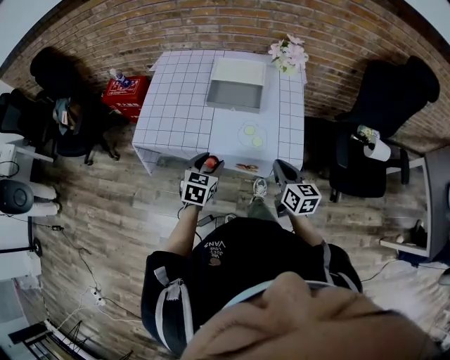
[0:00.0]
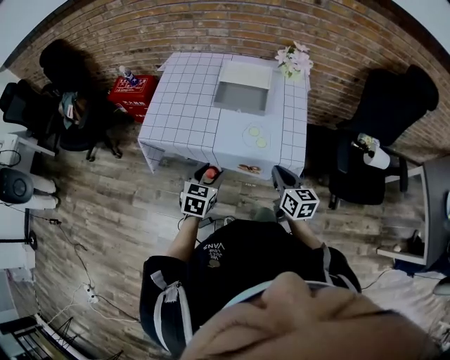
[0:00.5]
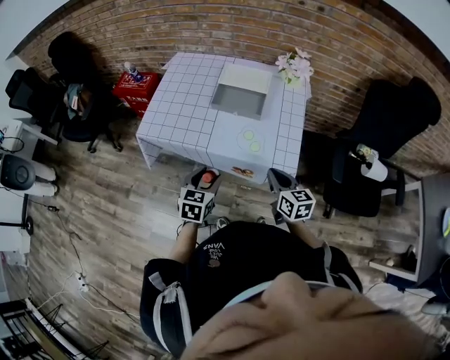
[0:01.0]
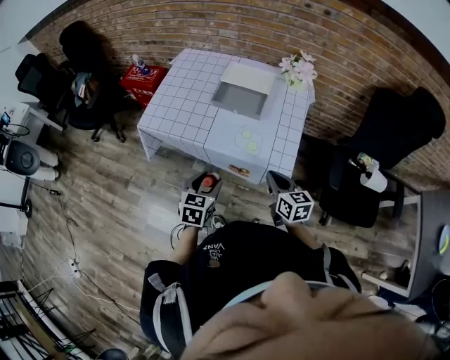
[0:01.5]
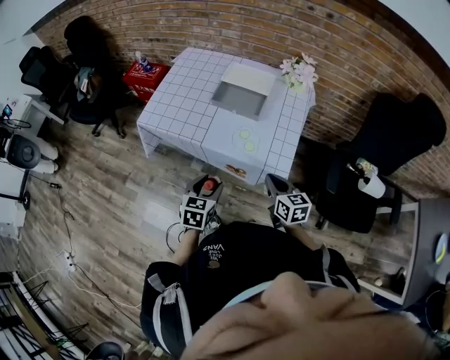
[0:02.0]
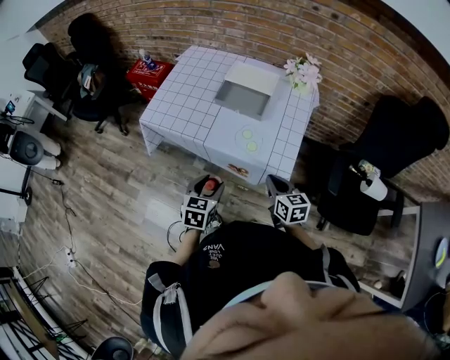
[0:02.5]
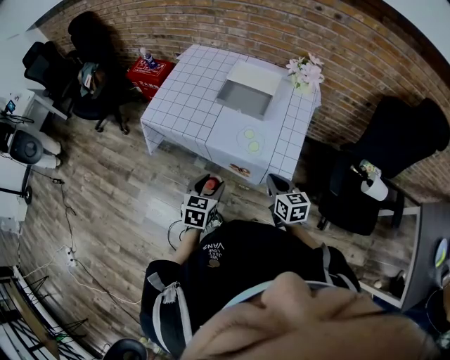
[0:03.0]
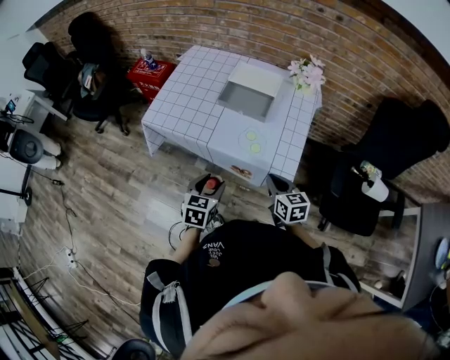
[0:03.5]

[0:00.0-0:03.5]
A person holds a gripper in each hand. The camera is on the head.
0:00.0 to 0:02.0: The left gripper travels backward and to the right by approximately 10 cm.
0:02.0 to 0:03.5: The grippers move only a little.

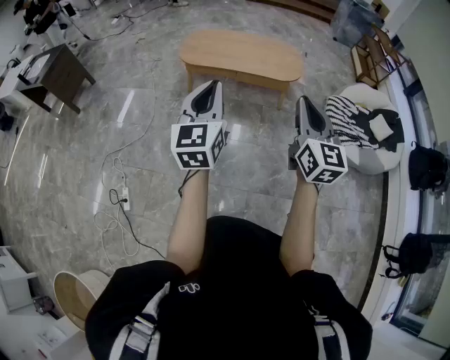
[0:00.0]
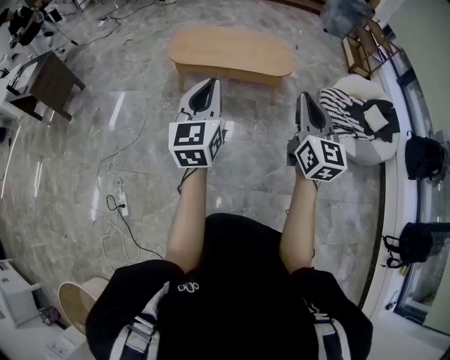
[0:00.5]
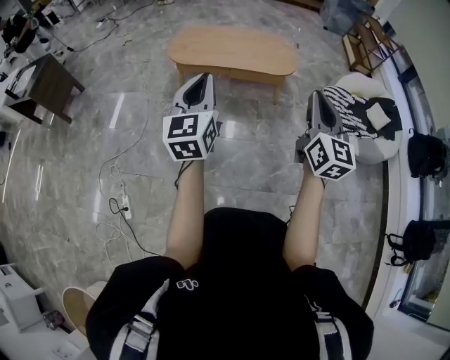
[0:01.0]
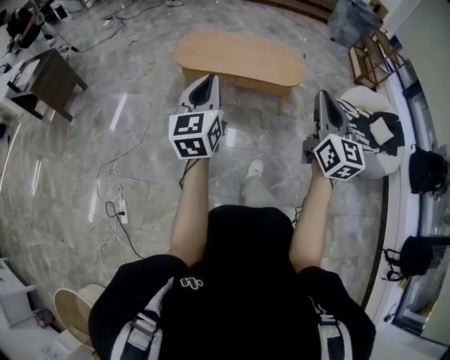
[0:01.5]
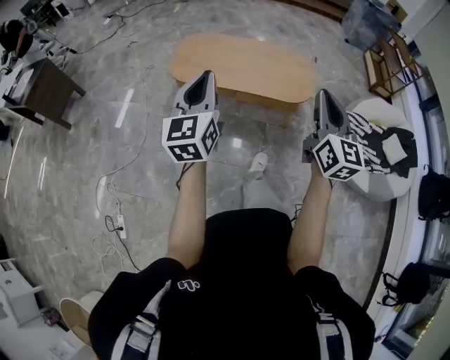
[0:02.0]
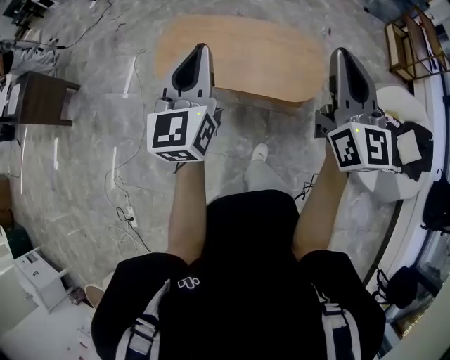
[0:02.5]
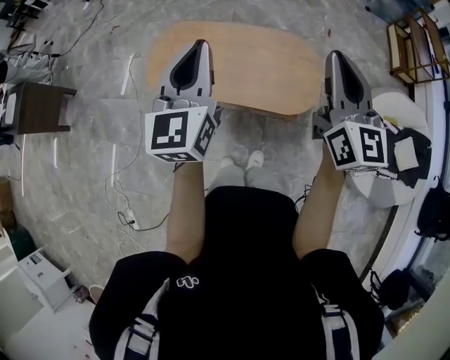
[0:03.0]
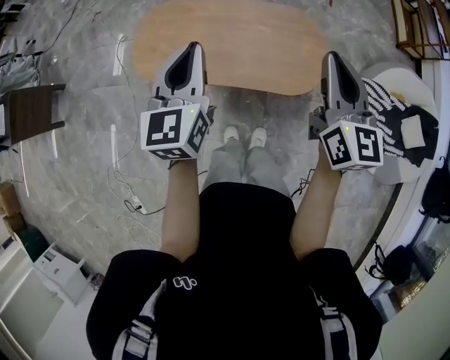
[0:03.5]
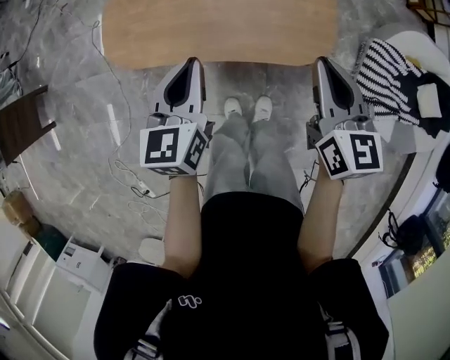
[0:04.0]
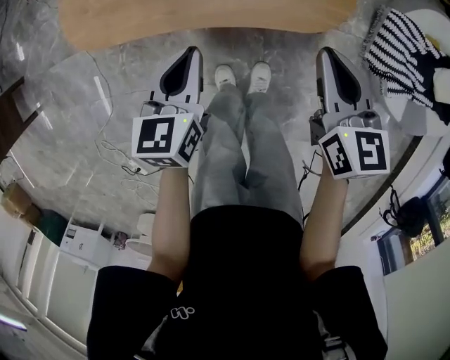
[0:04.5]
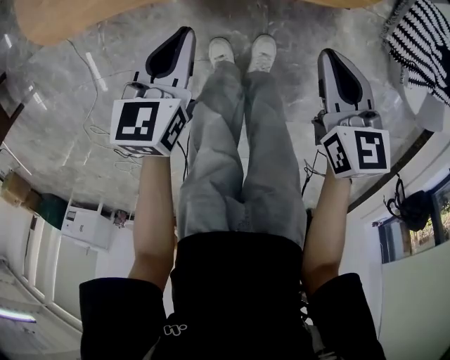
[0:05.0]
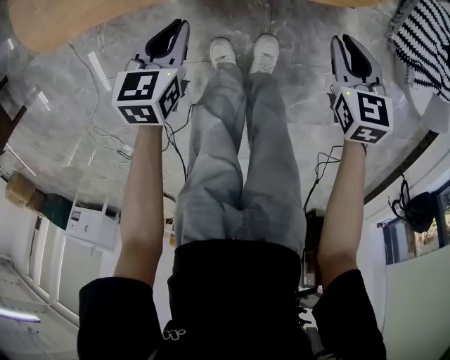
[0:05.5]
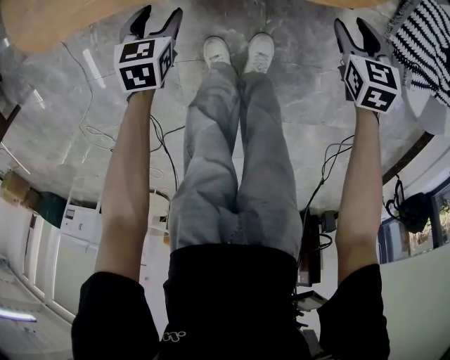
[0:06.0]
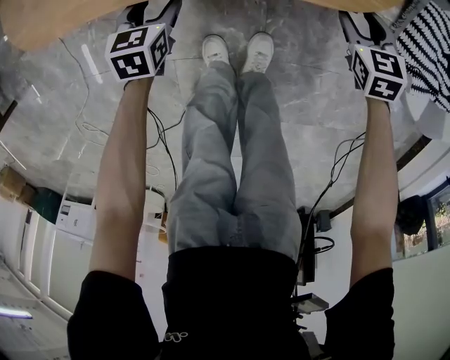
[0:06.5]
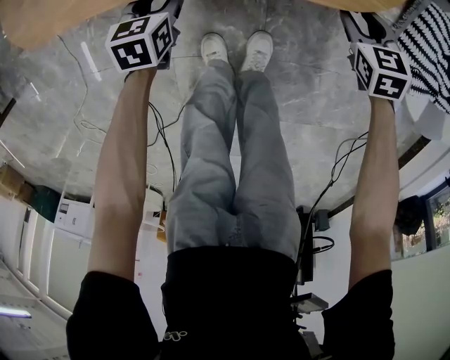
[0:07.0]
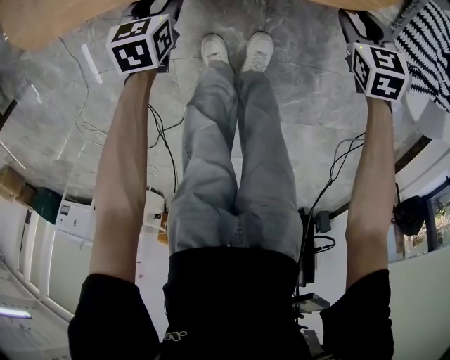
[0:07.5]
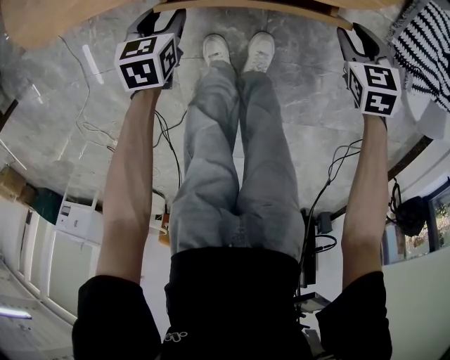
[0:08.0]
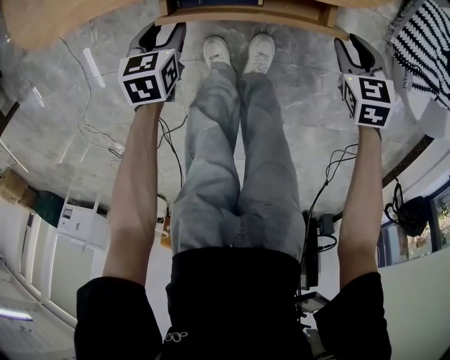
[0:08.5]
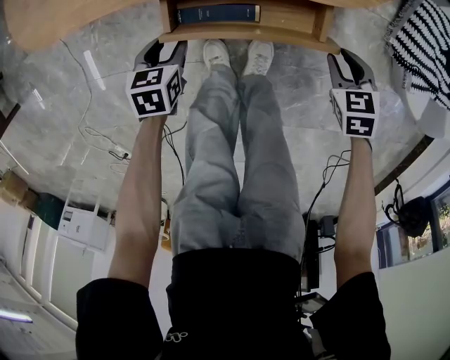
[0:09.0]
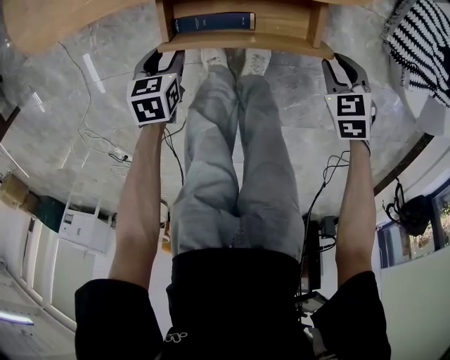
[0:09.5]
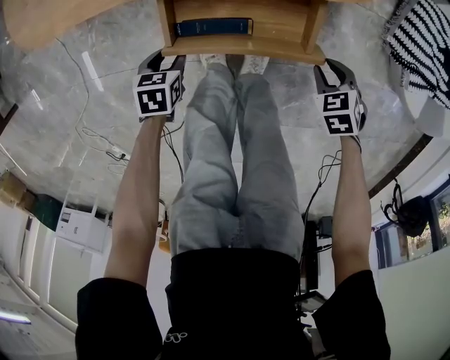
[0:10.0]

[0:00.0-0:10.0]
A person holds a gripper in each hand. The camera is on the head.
0:00.0 to 0:02.0: The grippers both shift forward by some 35 cm.
0:02.0 to 0:04.0: Both grippers are carried forward, some 40 cm. Both grippers move downward, approximately 25 cm. The right gripper changes its angle by roughly 30 degrees; the left gripper swivels about 30 degrees.
0:04.0 to 0:06.0: The two grippers go about 50 cm downward. The left gripper tilts its fingers about 30 degrees downward, and opens, while the right gripper tips its fingers downward by approximately 40 degrees, and opens its fingers.
0:06.0 to 0:08.0: The grippers move only a little.
0:08.0 to 0:10.0: The left gripper changes place by roughly 15 cm. Meanwhile the right gripper moves approximately 15 cm.

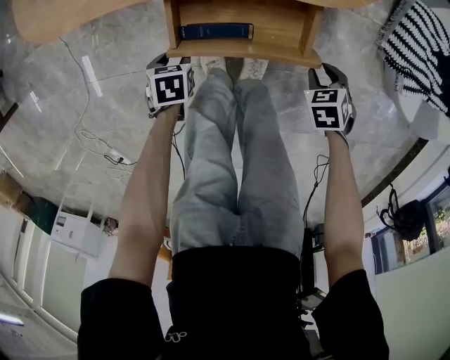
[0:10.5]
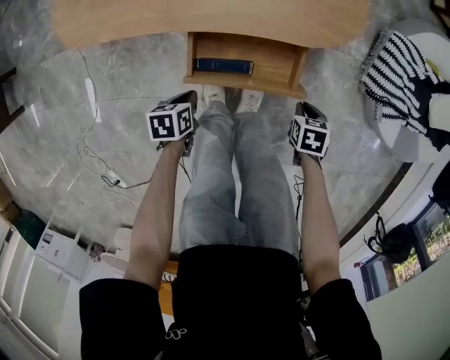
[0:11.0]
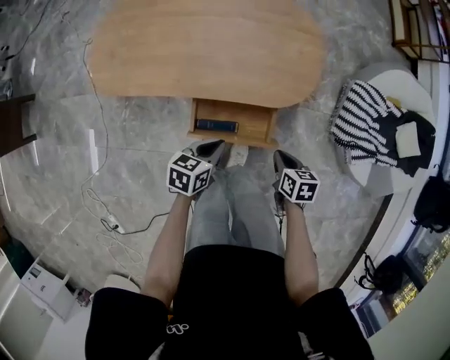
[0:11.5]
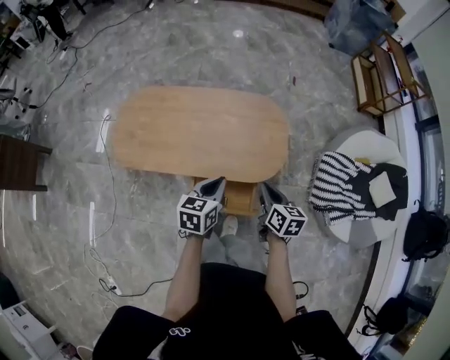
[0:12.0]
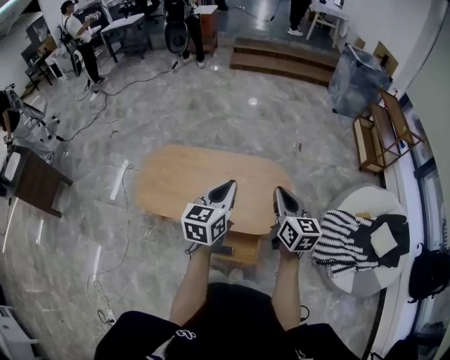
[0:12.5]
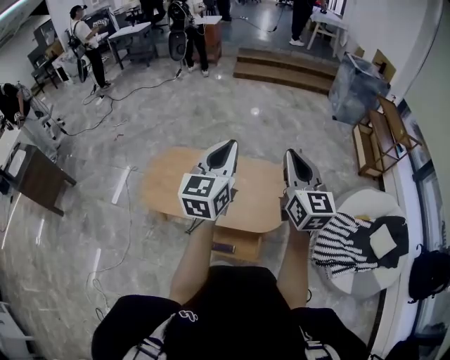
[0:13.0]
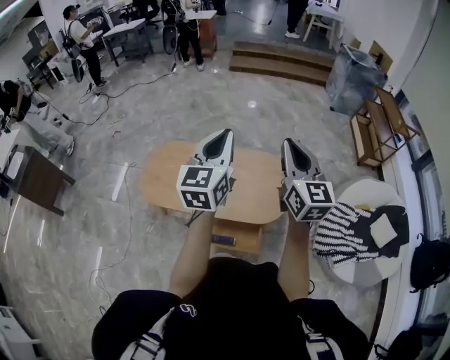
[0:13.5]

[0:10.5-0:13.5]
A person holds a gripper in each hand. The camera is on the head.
0:10.5 to 0:12.0: The grippers both shift upward by roughly 50 cm. The right gripper points its fingers approximately 50 degrees further upward, and closes its fingers. The left gripper tips its fingers upward by some 50 degrees, and closes up.
0:12.0 to 0:13.5: The two grippers go some 40 cm upward. The left gripper tilts its fingers approximately 40 degrees upward, while the right gripper points its fingers roughly 40 degrees further upward.

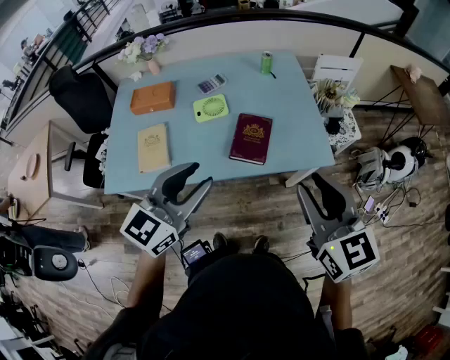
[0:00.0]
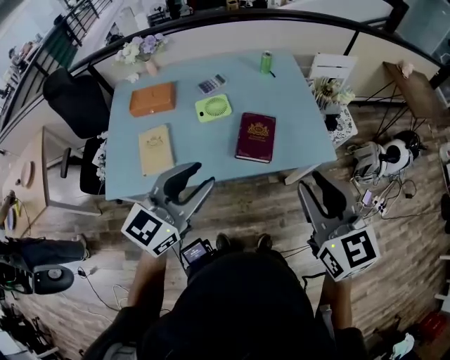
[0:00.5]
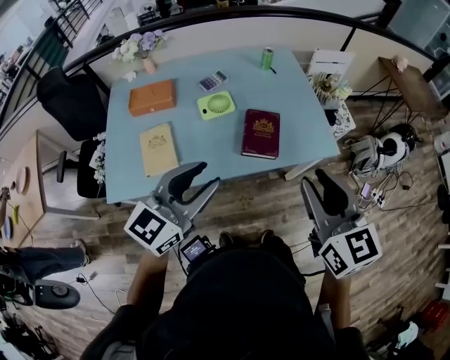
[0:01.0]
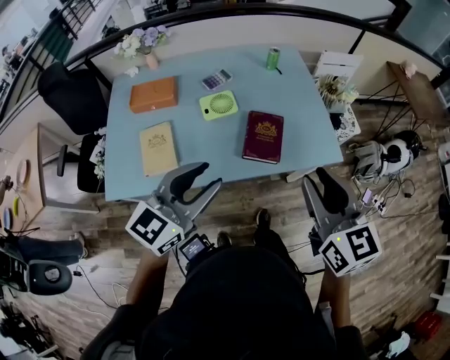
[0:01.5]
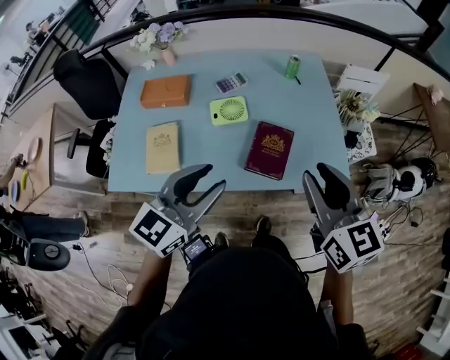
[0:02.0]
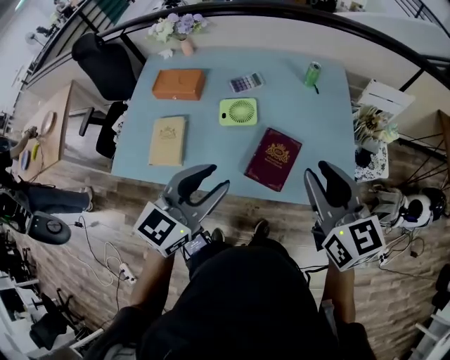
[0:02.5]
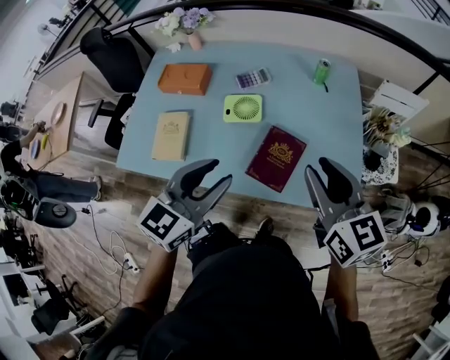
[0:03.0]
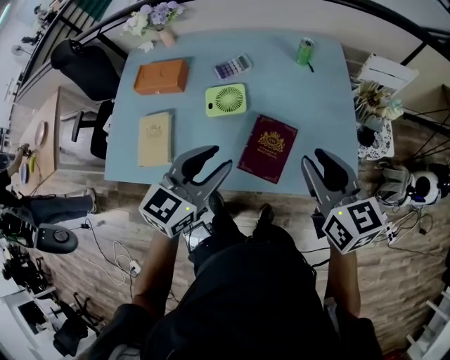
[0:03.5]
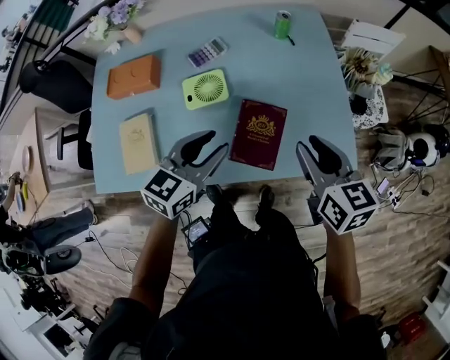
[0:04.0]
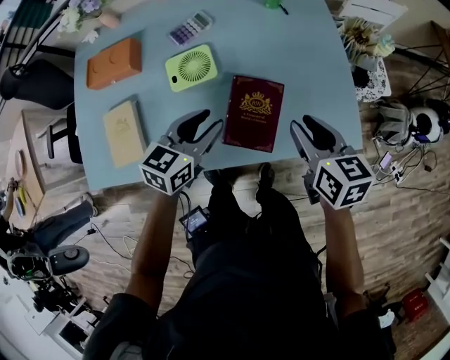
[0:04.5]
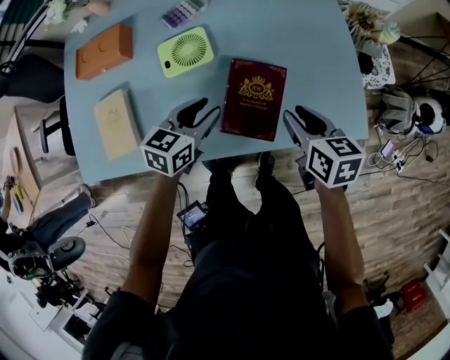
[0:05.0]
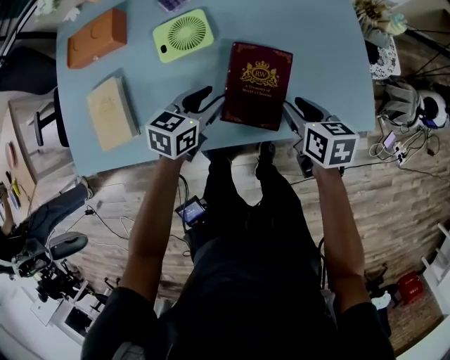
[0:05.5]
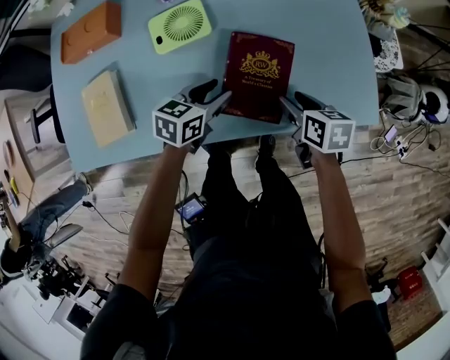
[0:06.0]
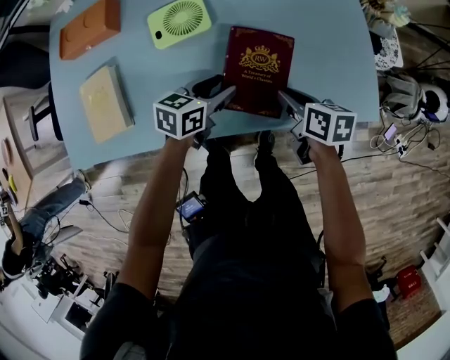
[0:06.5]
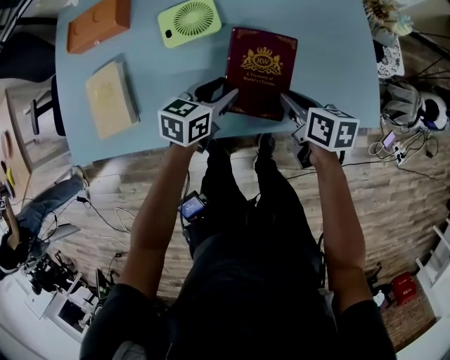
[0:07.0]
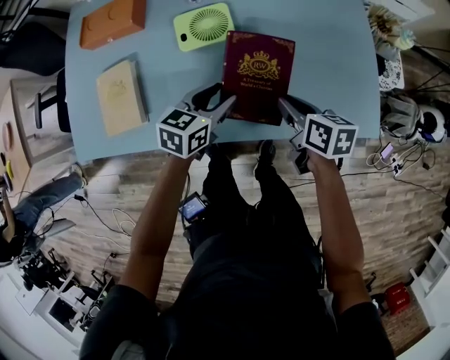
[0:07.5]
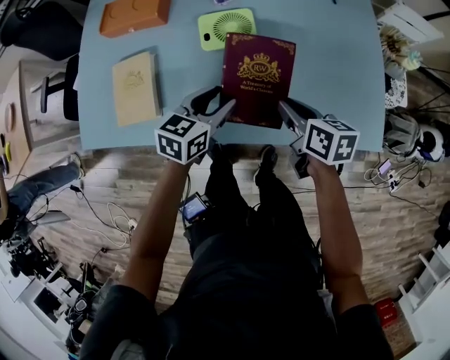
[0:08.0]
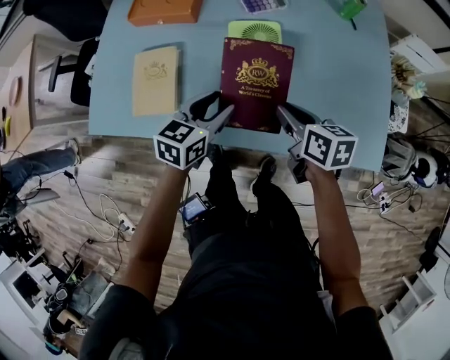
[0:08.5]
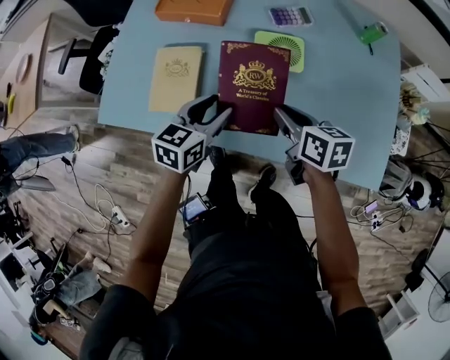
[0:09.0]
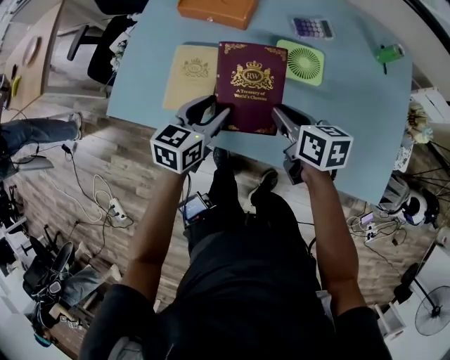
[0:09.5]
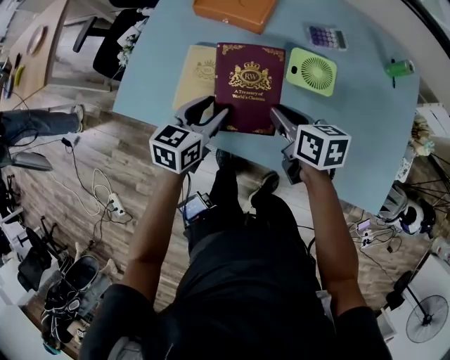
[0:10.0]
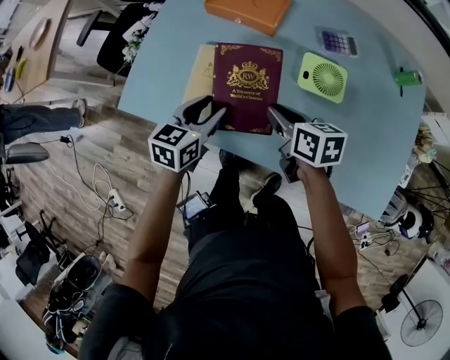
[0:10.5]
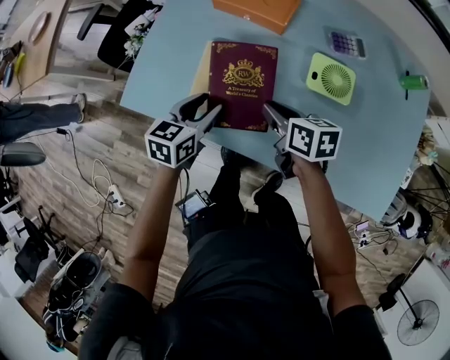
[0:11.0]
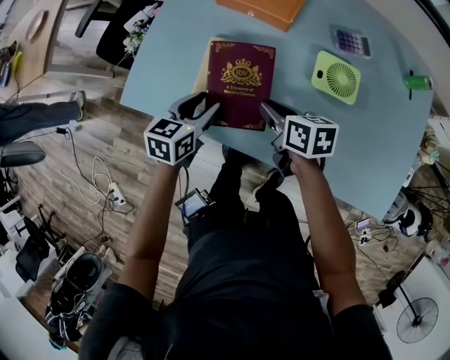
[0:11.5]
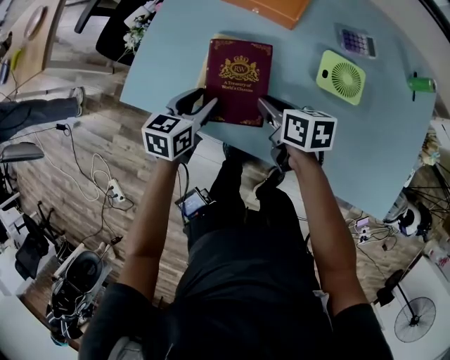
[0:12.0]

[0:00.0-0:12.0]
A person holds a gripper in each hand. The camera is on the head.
0:00.0 to 0:02.0: The right gripper travels forward and to the left by approximately 15 cm. The left gripper is displaced forward by approximately 5 cm.
0:02.0 to 0:04.0: The left gripper heads forward, downward and to the right, covering roughly 20 cm; the right gripper travels downward and forward by approximately 20 cm.
0:04.0 to 0:06.0: Both grippers move downward, about 25 cm. The left gripper swivels roughly 20 degrees, while the right gripper rotates about 30 degrees.
0:06.0 to 0:08.0: The grippers both shift to the left and upward by roughly 10 cm. The right gripper closes up.
0:08.0 to 0:10.0: The two grippers go about 25 cm to the left. The right gripper rotates about 20 degrees. The left gripper swivels approximately 20 degrees.
0:10.0 to 0:12.0: Both grippers move to the left and downward, approximately 15 cm.
